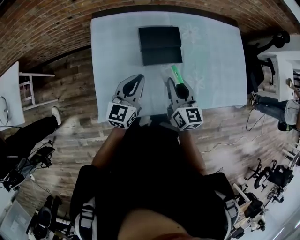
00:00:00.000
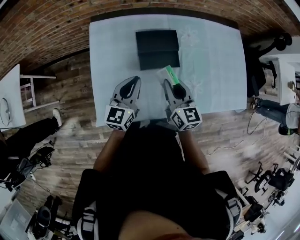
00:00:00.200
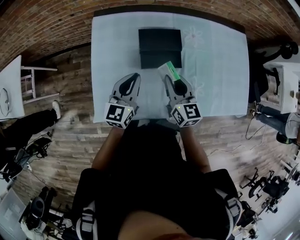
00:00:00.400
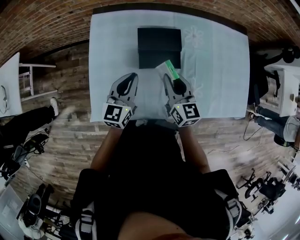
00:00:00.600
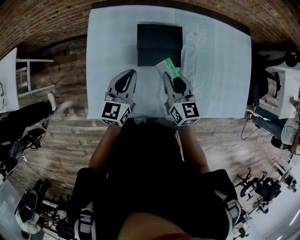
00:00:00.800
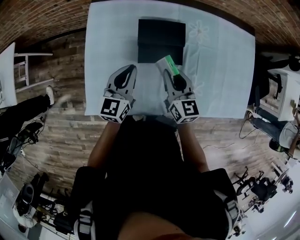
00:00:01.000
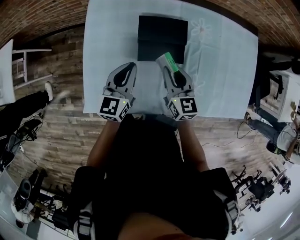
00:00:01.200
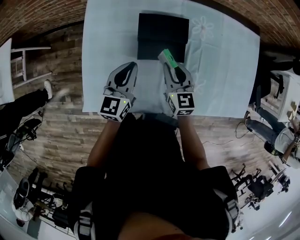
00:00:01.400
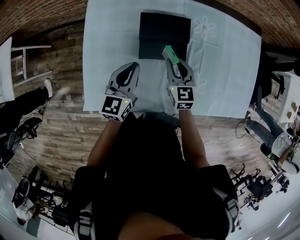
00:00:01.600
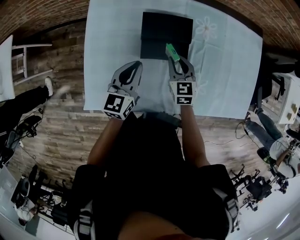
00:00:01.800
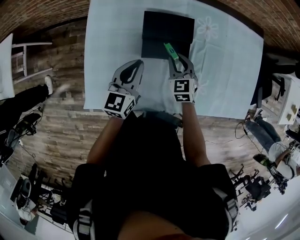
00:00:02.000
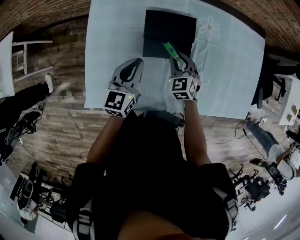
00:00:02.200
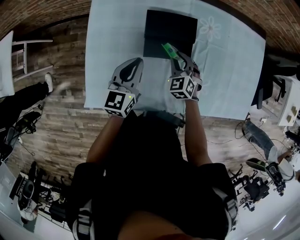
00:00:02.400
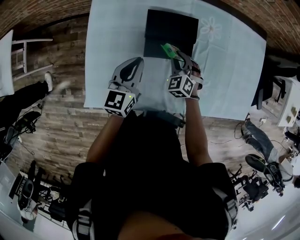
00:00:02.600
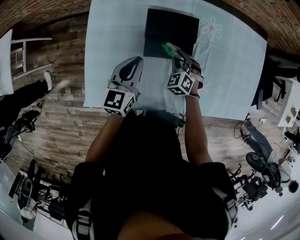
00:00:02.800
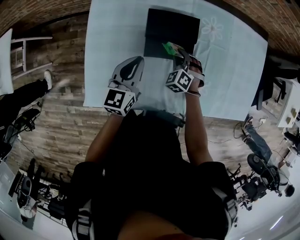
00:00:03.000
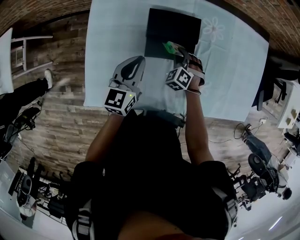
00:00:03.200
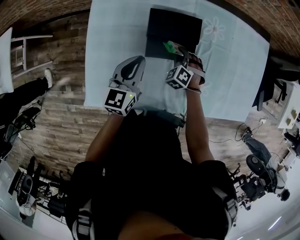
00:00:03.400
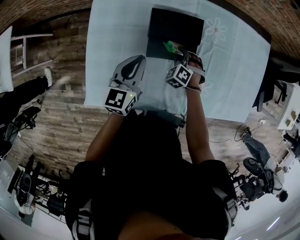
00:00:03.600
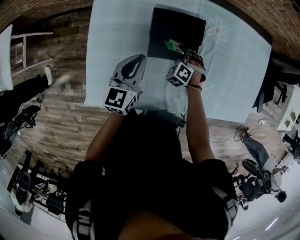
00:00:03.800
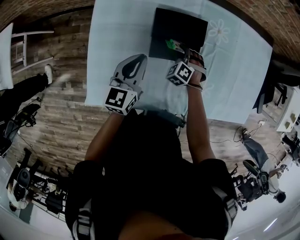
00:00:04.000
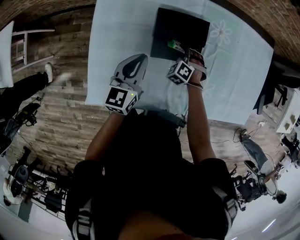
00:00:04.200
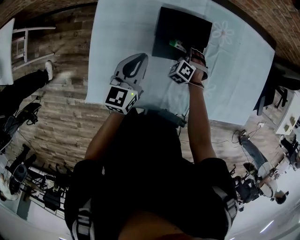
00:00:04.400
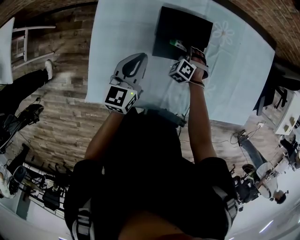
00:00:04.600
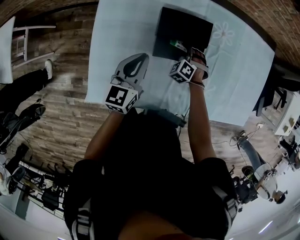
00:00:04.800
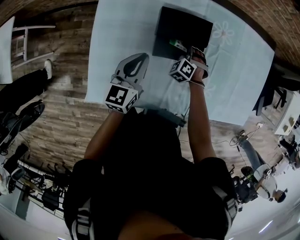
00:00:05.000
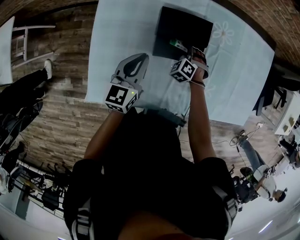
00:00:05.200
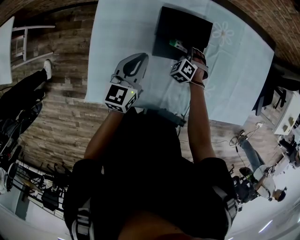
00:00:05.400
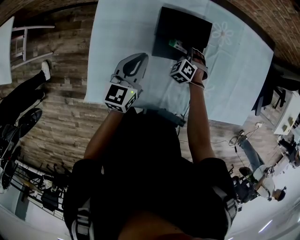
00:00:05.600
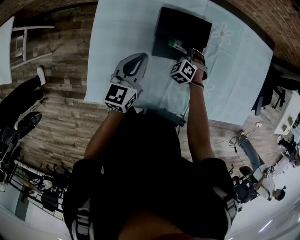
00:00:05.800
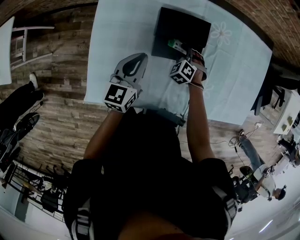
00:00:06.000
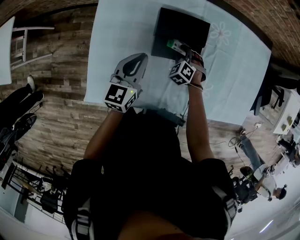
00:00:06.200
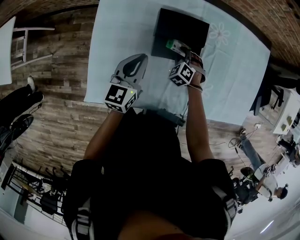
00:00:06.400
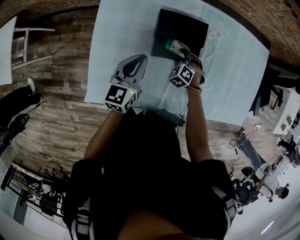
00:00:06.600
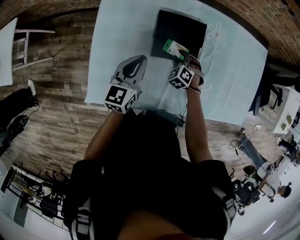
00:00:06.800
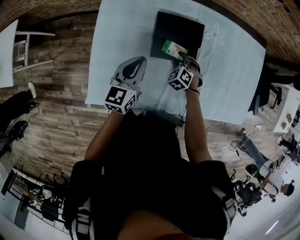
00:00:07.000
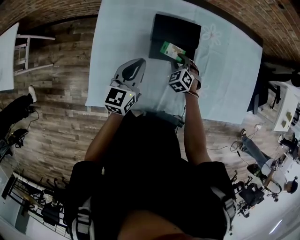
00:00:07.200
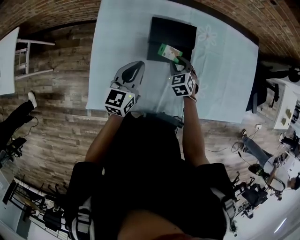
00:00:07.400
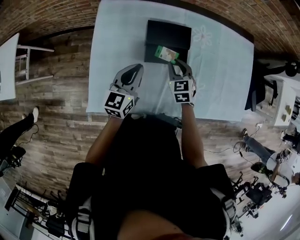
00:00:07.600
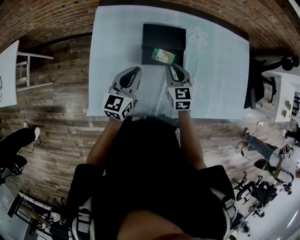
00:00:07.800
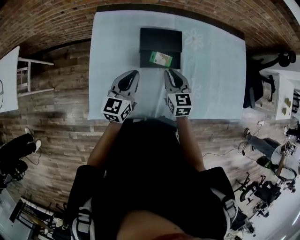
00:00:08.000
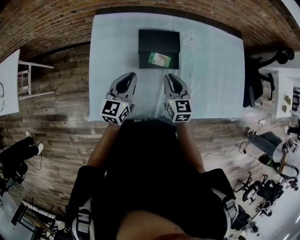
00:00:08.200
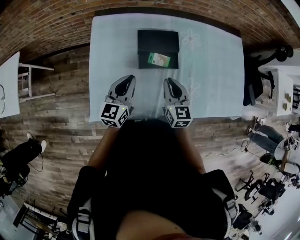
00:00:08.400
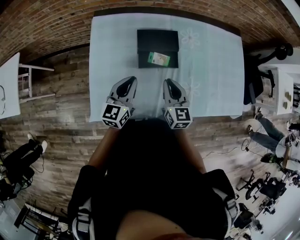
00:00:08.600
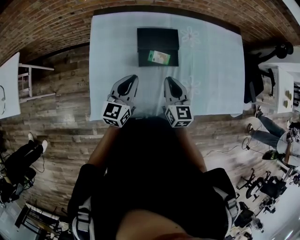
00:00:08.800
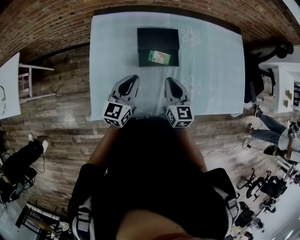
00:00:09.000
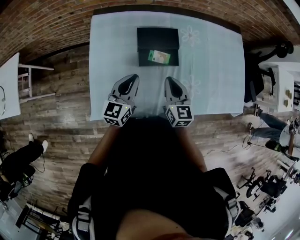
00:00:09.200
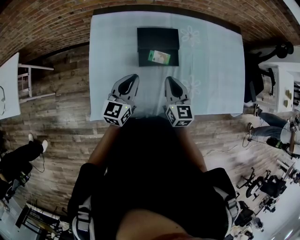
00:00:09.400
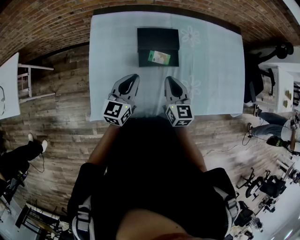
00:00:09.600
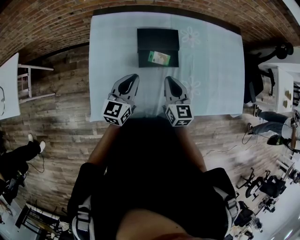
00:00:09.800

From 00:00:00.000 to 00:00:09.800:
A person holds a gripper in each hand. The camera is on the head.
From 00:00:00.000 to 00:00:01.400: The grippers both shift downward and forward by approximately 15 cm.
From 00:00:01.400 to 00:00:02.800: The right gripper is displaced downward by approximately 10 cm, and rotates around the line of its fingers by roughly 40 degrees, counterclockwise from behind.
From 00:00:02.800 to 00:00:04.200: The right gripper heads downward, covering about 5 cm.
From 00:00:04.200 to 00:00:05.600: Neither gripper changes place.
From 00:00:05.600 to 00:00:07.000: The right gripper shifts by approximately 5 cm.
From 00:00:07.000 to 00:00:08.400: The left gripper travels backward by approximately 5 cm; the right gripper moves upward and backward, some 25 cm, twists some 50 degrees clockwise, seen from behind, and closes.
From 00:00:08.400 to 00:00:09.800: Both grippers stay about where they are.

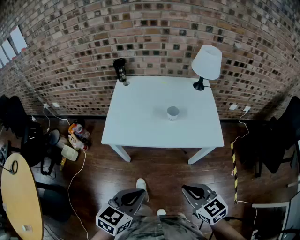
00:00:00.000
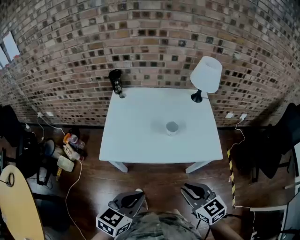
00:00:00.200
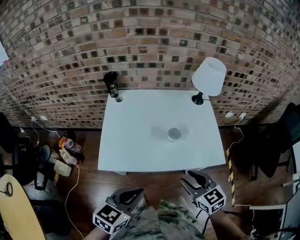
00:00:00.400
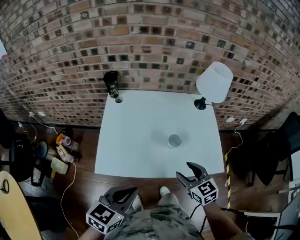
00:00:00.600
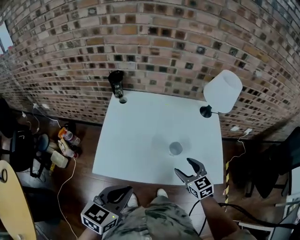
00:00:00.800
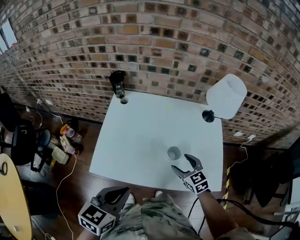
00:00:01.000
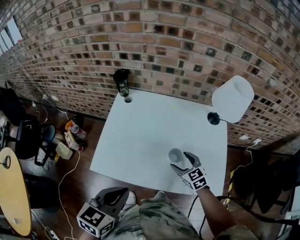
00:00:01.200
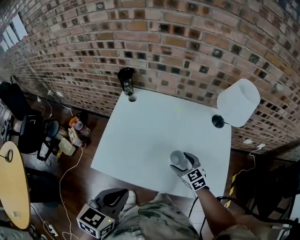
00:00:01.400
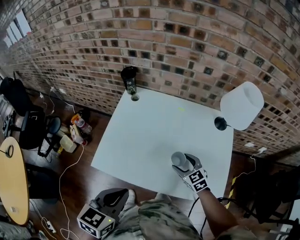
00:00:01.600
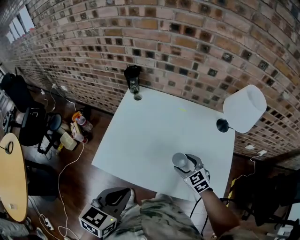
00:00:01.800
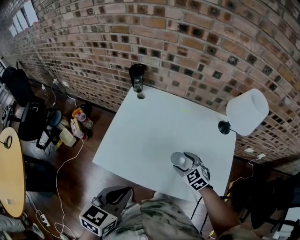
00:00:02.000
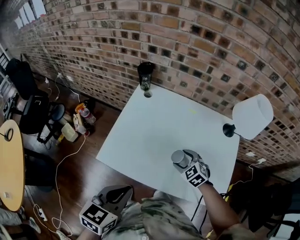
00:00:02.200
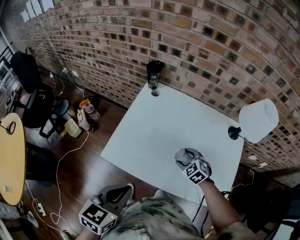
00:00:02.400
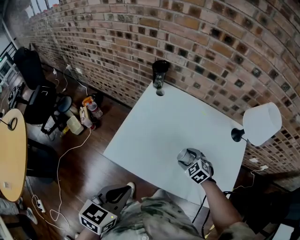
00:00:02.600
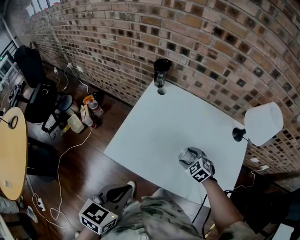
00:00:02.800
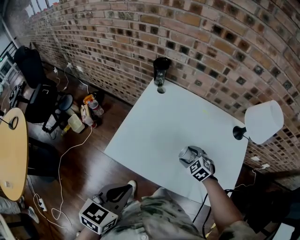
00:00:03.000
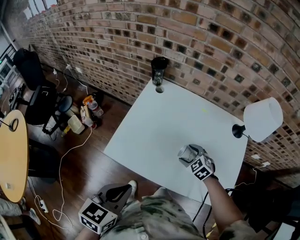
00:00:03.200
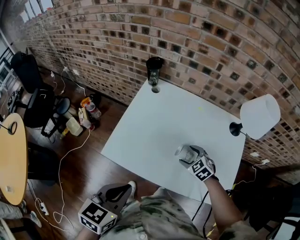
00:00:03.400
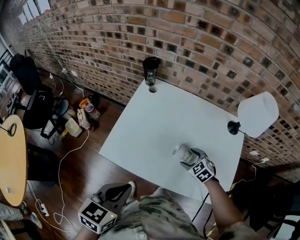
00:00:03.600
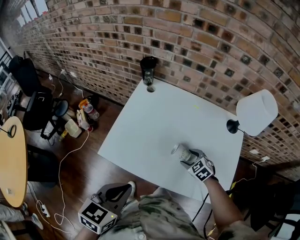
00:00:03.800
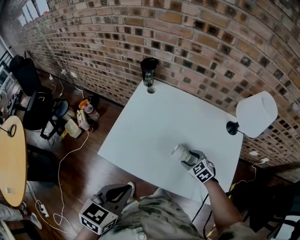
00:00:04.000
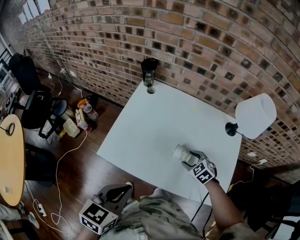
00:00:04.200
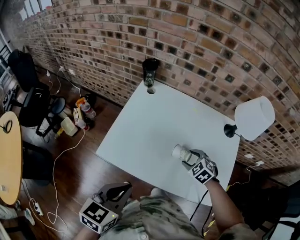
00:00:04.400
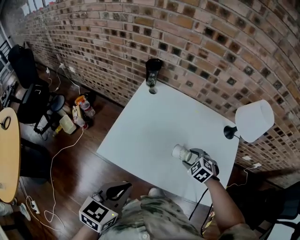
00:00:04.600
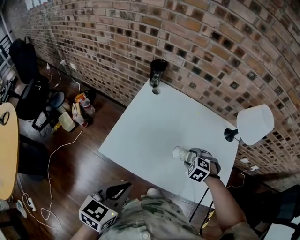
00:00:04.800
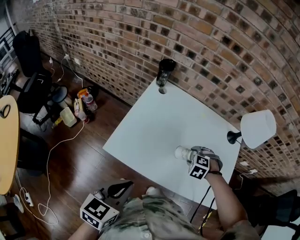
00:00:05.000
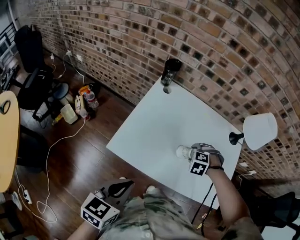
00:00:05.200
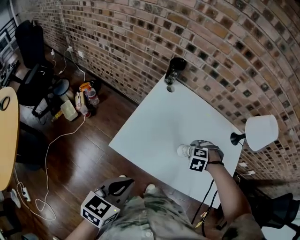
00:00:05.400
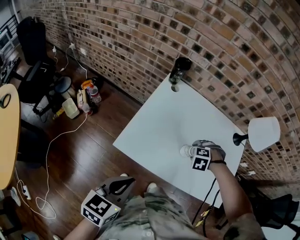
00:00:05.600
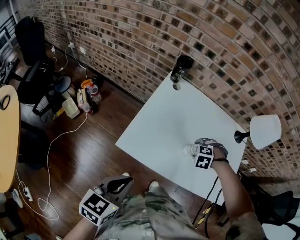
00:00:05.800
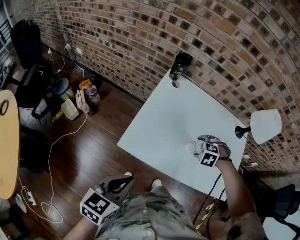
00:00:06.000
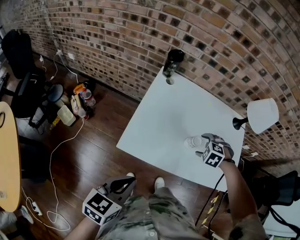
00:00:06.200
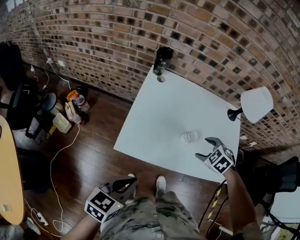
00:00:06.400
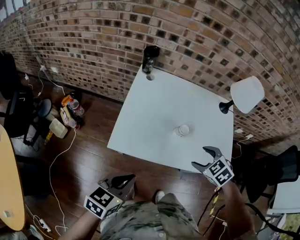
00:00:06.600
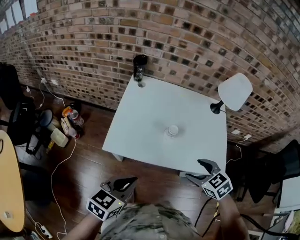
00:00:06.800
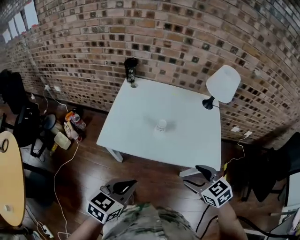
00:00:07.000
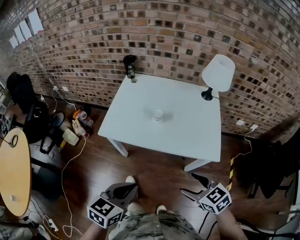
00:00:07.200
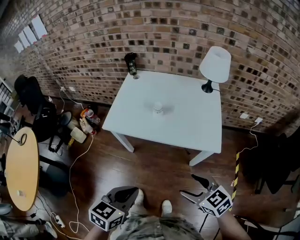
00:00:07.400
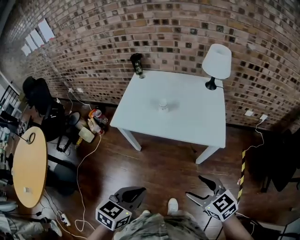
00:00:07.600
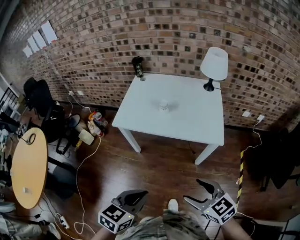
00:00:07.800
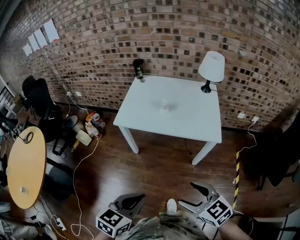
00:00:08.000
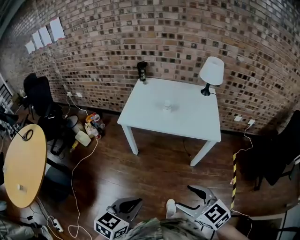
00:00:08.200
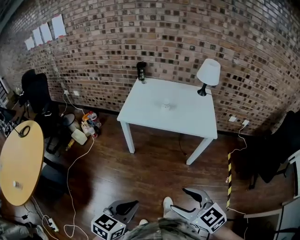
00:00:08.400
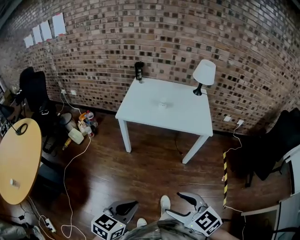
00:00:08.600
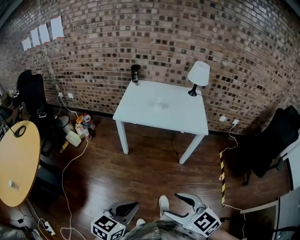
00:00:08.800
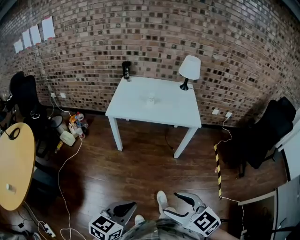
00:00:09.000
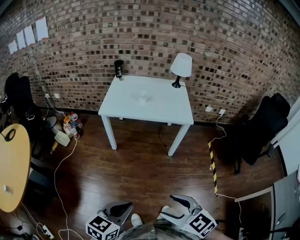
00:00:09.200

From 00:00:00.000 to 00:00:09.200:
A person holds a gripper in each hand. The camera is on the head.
From 00:00:00.000 to 00:00:01.600: The left gripper heads forward, covering about 25 cm, and changes its angle by some 20 degrees, while the right gripper shifts roughly 40 cm forward, and opens.
From 00:00:01.600 to 00:00:03.000: Both grippers move to the left, approximately 5 cm. The right gripper turns by some 30 degrees.
From 00:00:03.000 to 00:00:04.600: The right gripper ends up approximately 5 cm from where it was.
From 00:00:04.600 to 00:00:06.200: The left gripper shifts by about 15 cm, while the right gripper shifts by about 10 cm, and swivels roughly 20 degrees.
From 00:00:06.200 to 00:00:07.600: The left gripper shifts by roughly 35 cm; the right gripper moves approximately 50 cm, and angles its fingers upward, by some 40 degrees.
From 00:00:07.600 to 00:00:09.200: The right gripper moves backward and to the left, approximately 40 cm. Meanwhile the left gripper shifts approximately 30 cm backward.

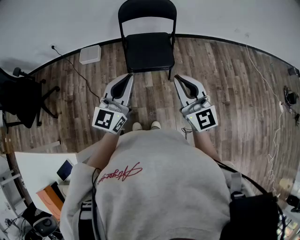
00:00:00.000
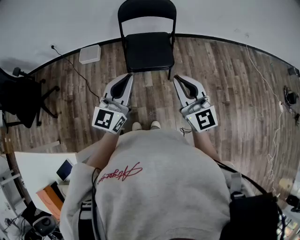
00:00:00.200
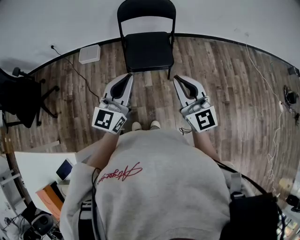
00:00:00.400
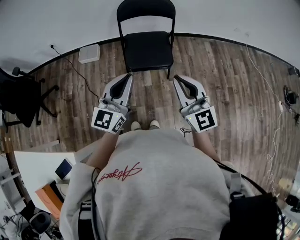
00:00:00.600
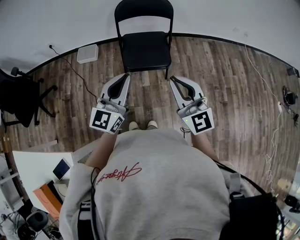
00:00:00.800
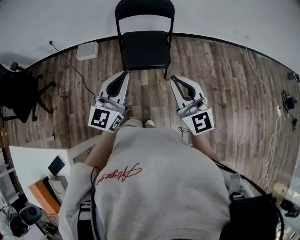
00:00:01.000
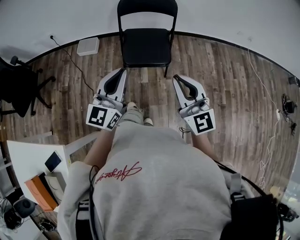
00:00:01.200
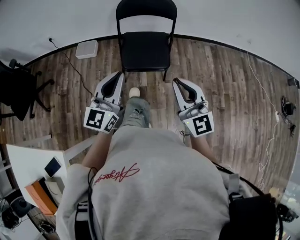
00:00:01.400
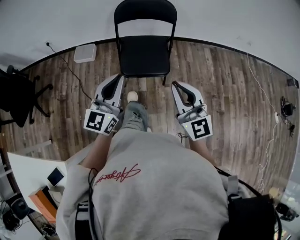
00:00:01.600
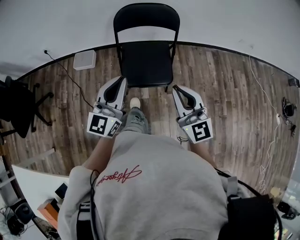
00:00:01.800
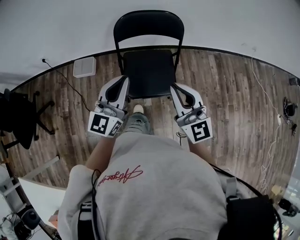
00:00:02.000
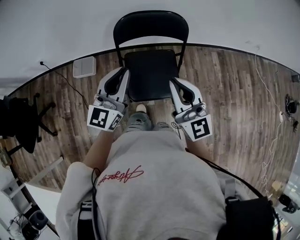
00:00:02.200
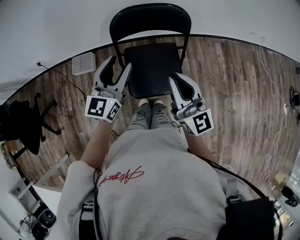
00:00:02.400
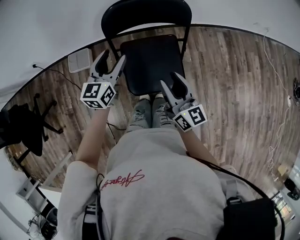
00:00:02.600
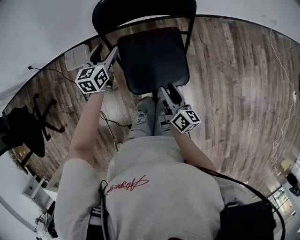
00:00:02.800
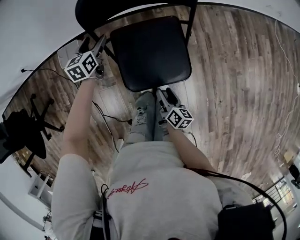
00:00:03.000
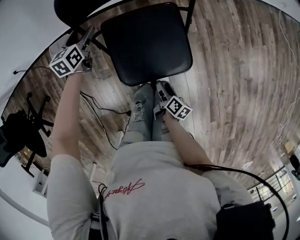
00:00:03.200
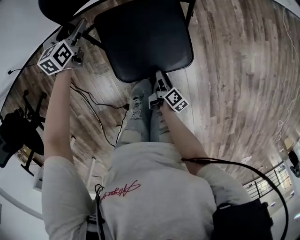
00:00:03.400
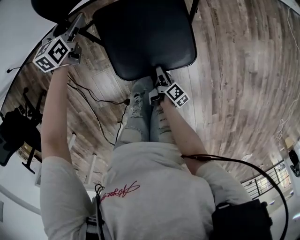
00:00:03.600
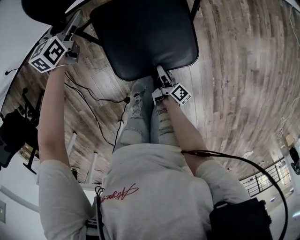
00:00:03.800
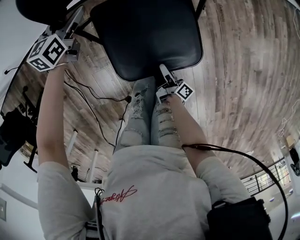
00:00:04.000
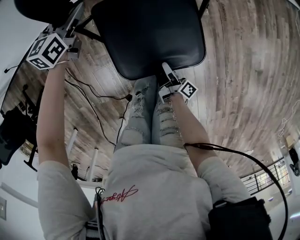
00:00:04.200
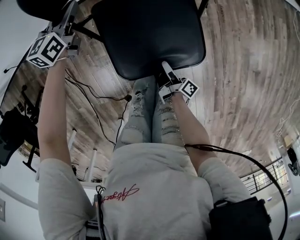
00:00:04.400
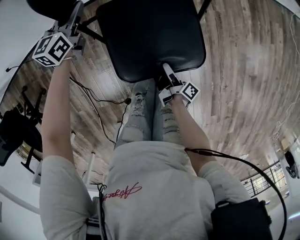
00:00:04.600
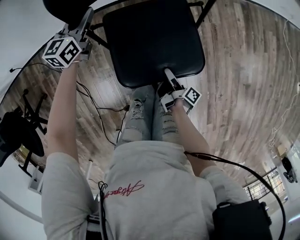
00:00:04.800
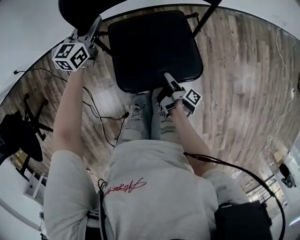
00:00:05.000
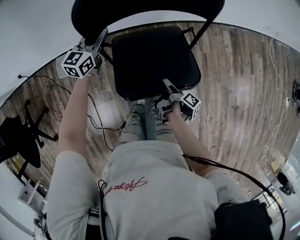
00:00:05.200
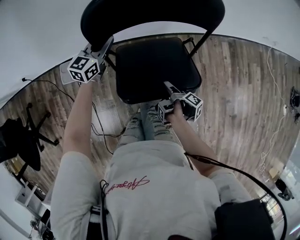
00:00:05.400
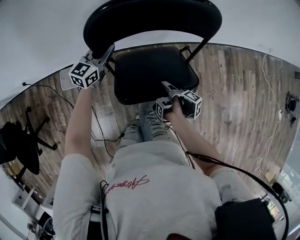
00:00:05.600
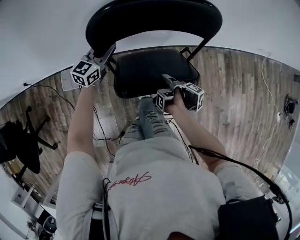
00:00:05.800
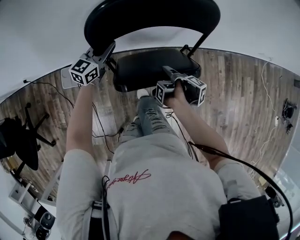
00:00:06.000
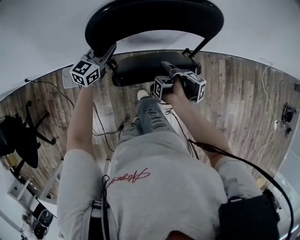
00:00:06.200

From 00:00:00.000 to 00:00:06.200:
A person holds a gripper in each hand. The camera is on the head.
From 00:00:00.000 to 00:00:01.600: Both grippers move forward, approximately 5 cm.
From 00:00:01.600 to 00:00:03.200: The left gripper moves forward and downward, approximately 60 cm, tilts its fingers some 40 degrees downward, and opens up. Meanwhile the right gripper goes approximately 50 cm downward, rolls clockwise, seen from behind, by roughly 90 degrees, and opens.
From 00:00:03.200 to 00:00:04.600: Both grippers move forward, about 5 cm. The left gripper closes up, while the right gripper rotates some 30 degrees.
From 00:00:04.600 to 00:00:06.200: The right gripper moves forward and upward, approximately 40 cm, and swivels some 30 degrees. The left gripper goes approximately 15 cm forward and upward.
